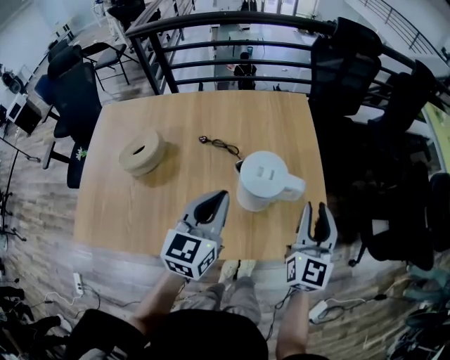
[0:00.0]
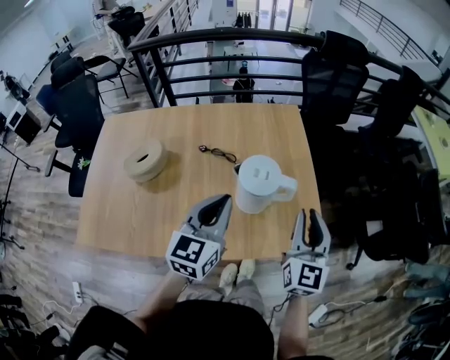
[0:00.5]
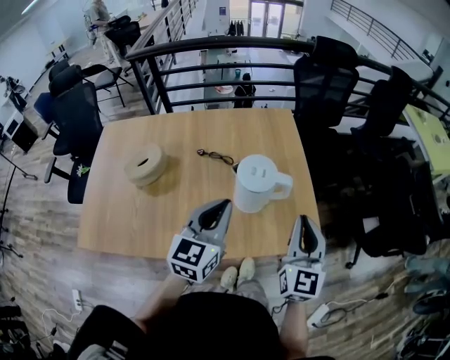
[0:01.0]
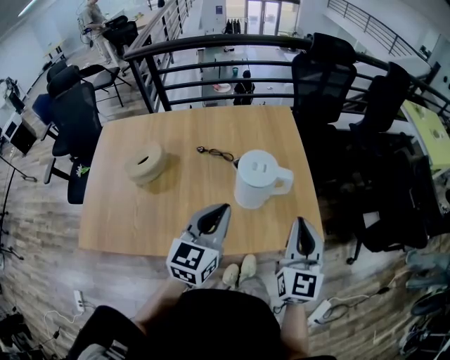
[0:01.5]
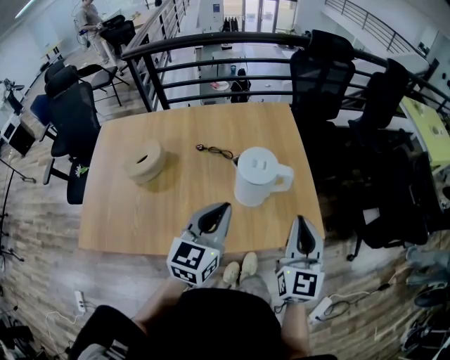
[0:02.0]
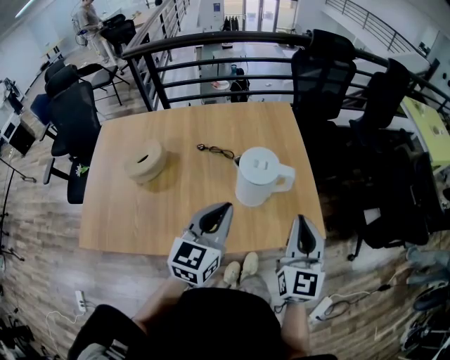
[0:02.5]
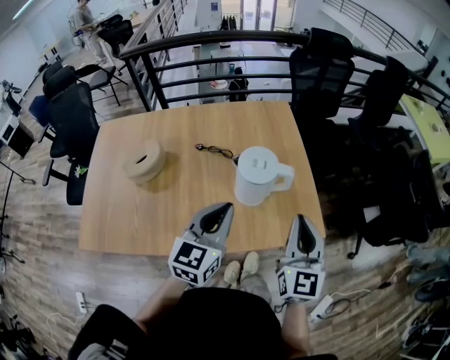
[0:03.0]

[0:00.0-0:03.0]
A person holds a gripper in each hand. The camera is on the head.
0:00.0 to 0:01.5: The left gripper heads backward, covering approximately 10 cm. The right gripper goes some 15 cm backward and upward, and closes up.
0:01.5 to 0:03.0: Both grippers stay about where they are.

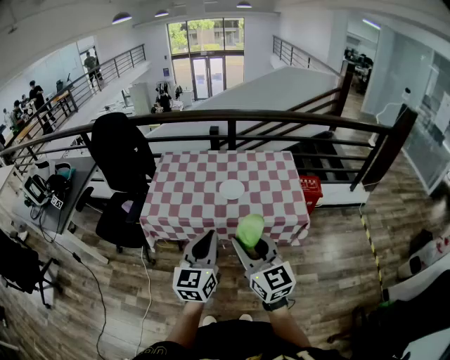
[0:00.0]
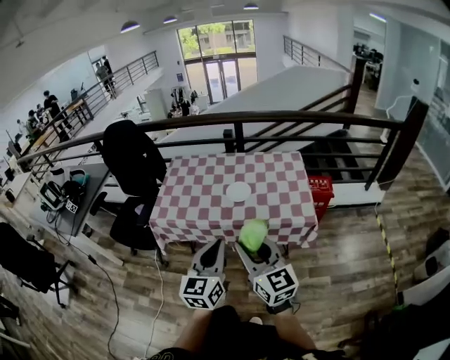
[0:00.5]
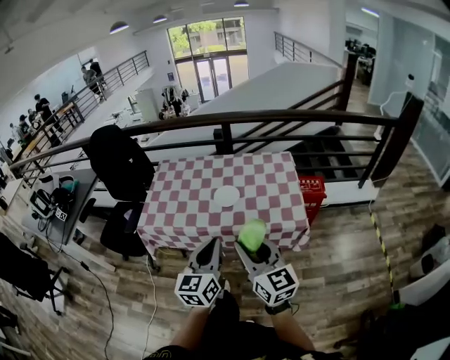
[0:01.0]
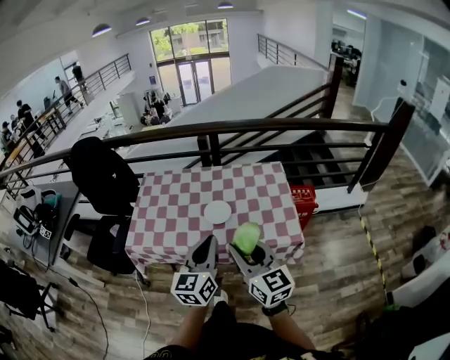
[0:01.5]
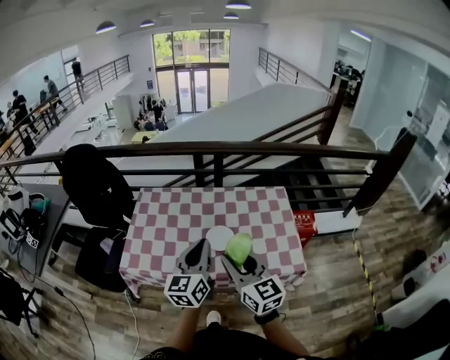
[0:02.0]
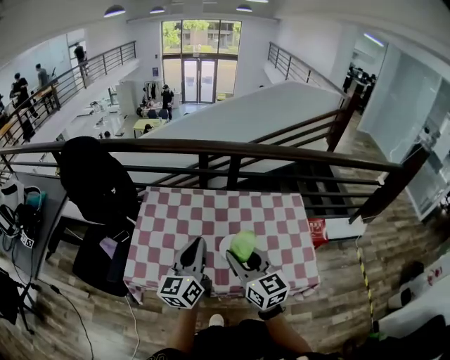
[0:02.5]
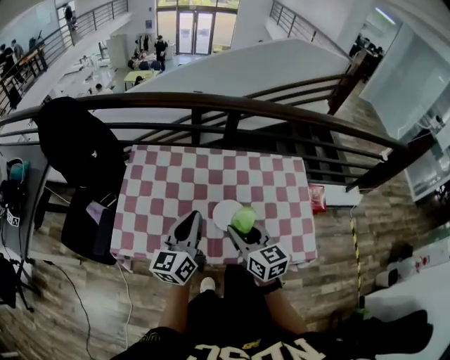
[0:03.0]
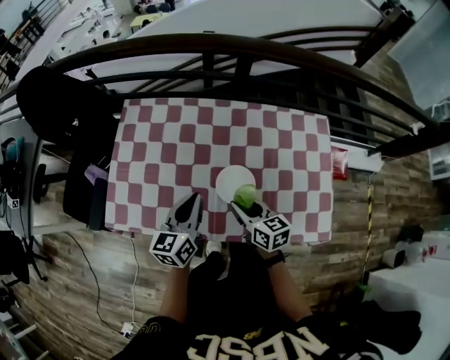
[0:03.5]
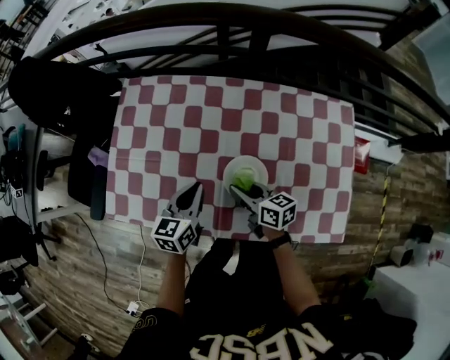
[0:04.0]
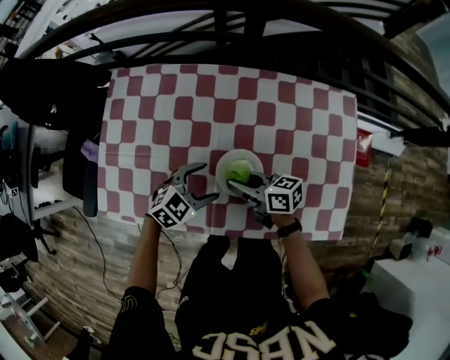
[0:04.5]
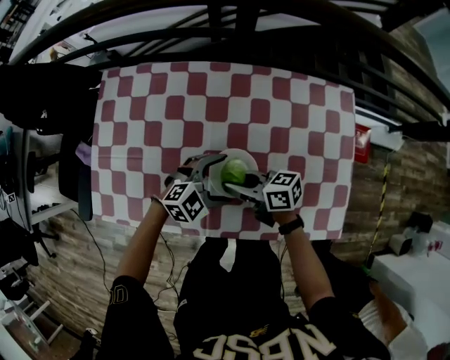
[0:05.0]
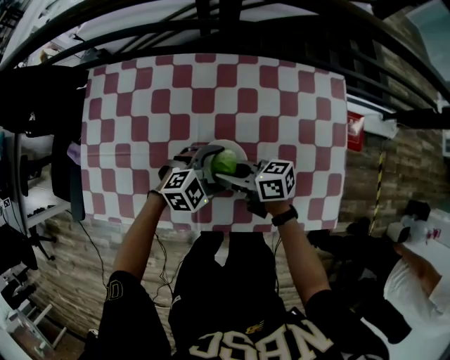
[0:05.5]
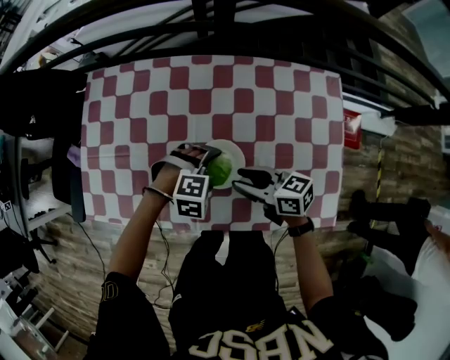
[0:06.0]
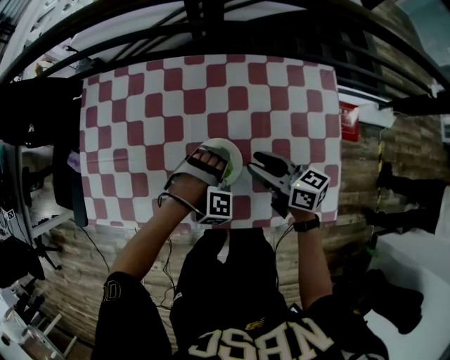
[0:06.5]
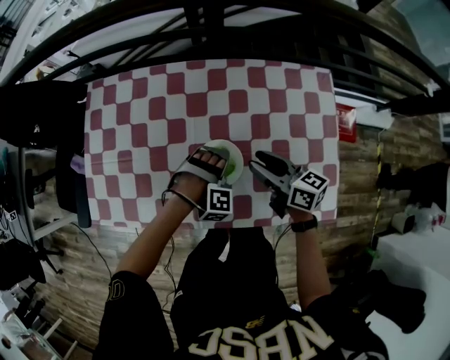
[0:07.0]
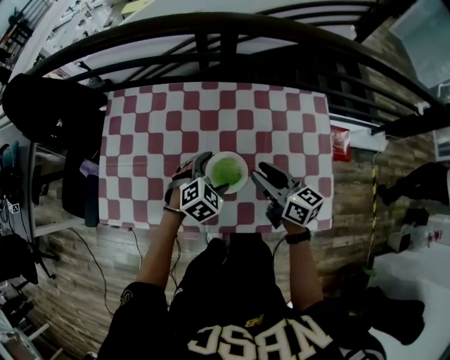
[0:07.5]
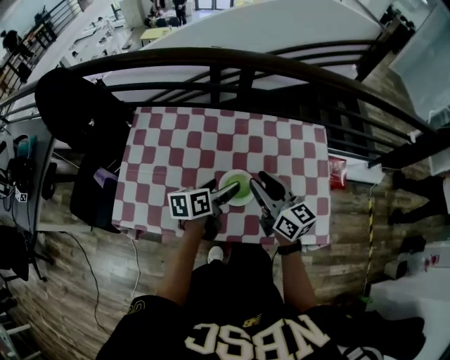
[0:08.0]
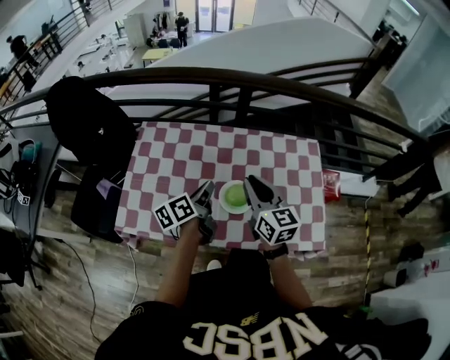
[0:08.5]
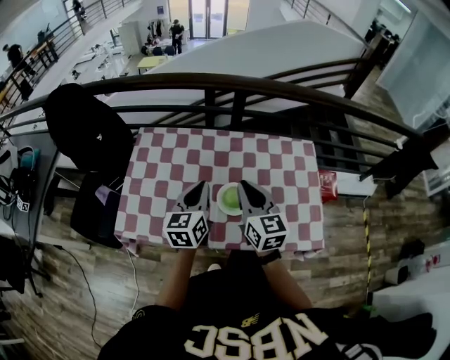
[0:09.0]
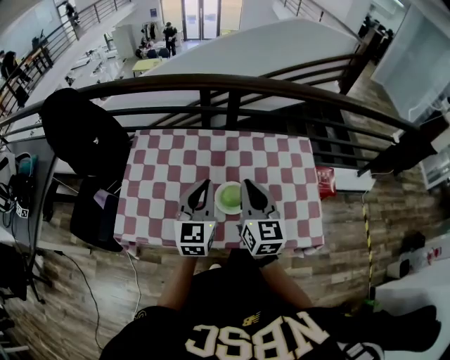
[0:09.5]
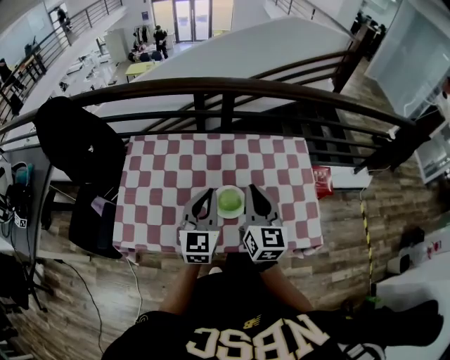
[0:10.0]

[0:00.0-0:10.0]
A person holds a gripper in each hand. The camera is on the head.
0:00.0 to 0:02.0: The two grippers go about 25 cm forward.
0:02.0 to 0:04.0: Both grippers travel together downward and forward, about 40 cm. The right gripper turns by some 50 degrees; the left gripper rotates roughly 30 degrees.
0:04.0 to 0:06.0: The left gripper moves about 15 cm, twists about 80 degrees clockwise, seen from behind, and opens up. The right gripper shifts by approximately 10 cm.
0:06.0 to 0:08.0: Both grippers travel together upward, roughly 20 cm. The left gripper twists roughly 100 degrees counterclockwise, seen from behind, while the right gripper turns by about 40 degrees.
0:08.0 to 0:10.0: The right gripper heads upward, covering about 5 cm, rotates roughly 30 degrees, and closes. The left gripper heads upward, covering about 10 cm, rolls clockwise, seen from behind, by roughly 50 degrees, and closes its fingers.

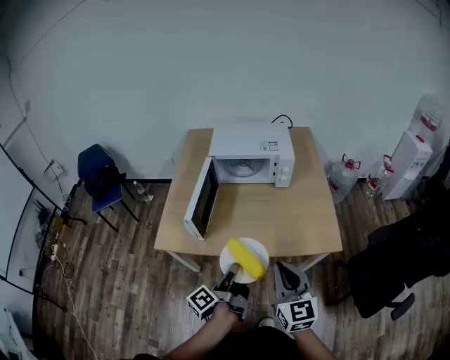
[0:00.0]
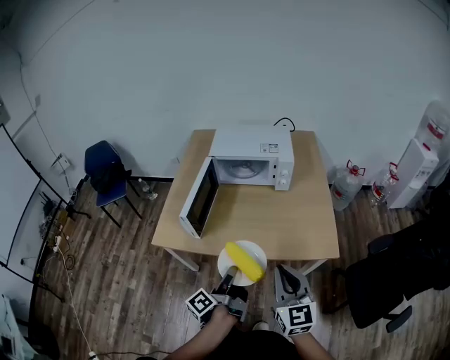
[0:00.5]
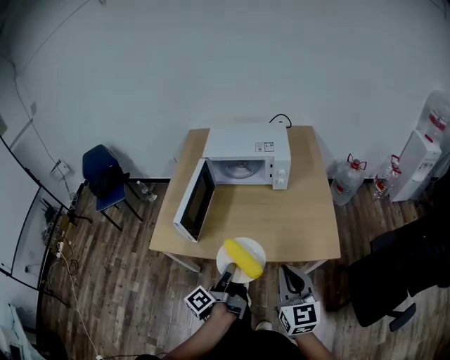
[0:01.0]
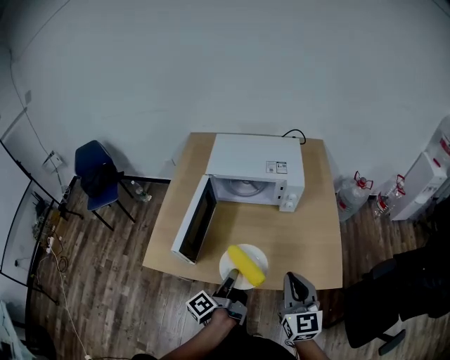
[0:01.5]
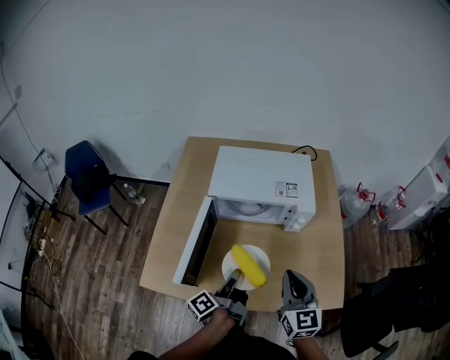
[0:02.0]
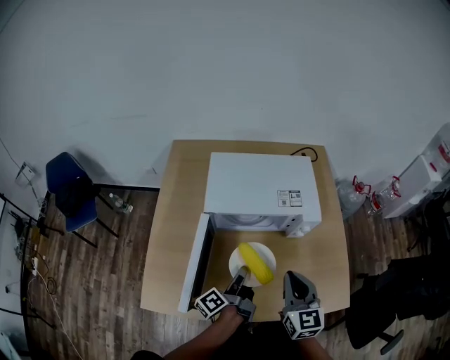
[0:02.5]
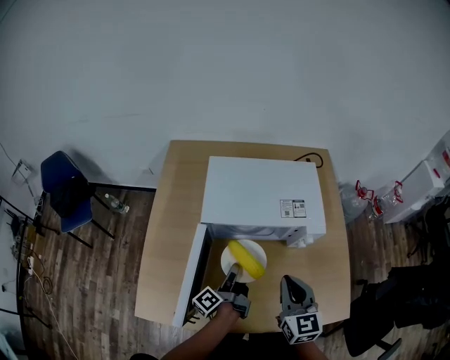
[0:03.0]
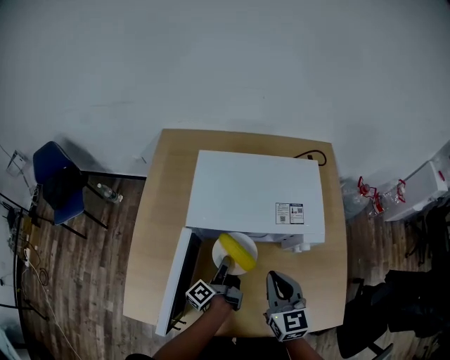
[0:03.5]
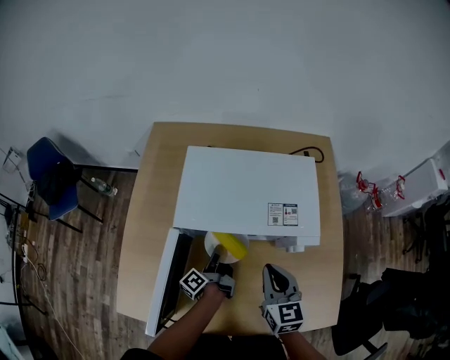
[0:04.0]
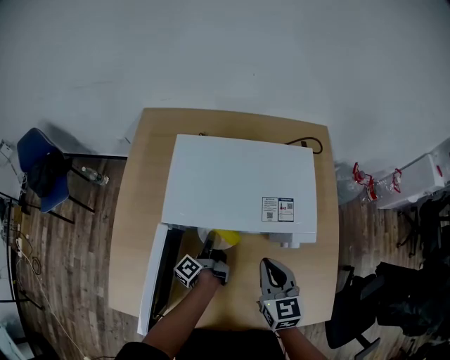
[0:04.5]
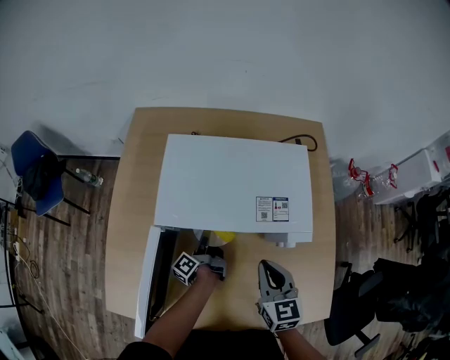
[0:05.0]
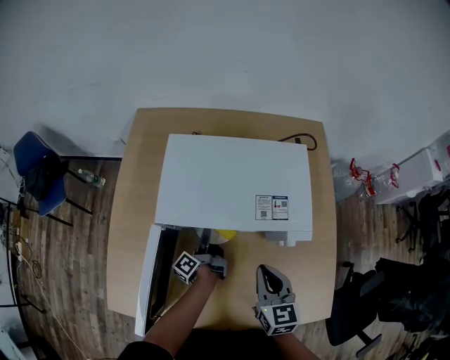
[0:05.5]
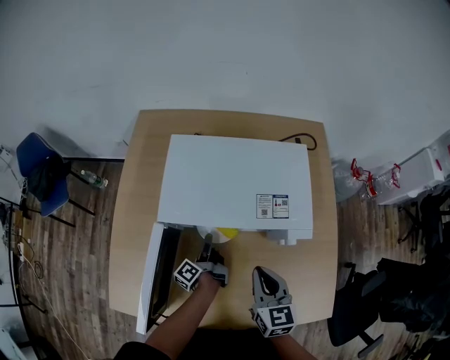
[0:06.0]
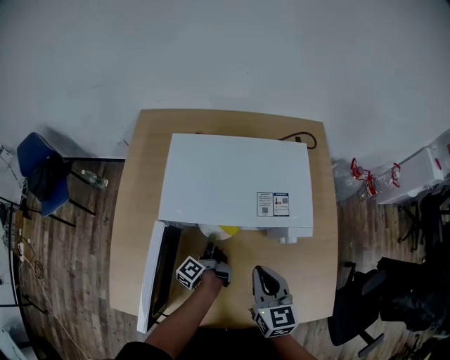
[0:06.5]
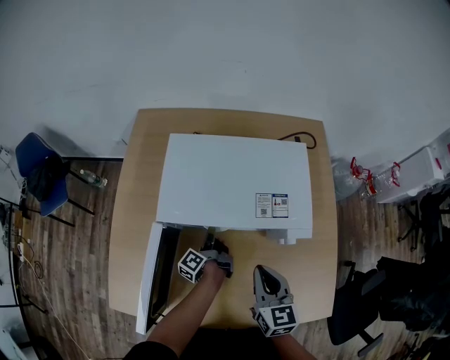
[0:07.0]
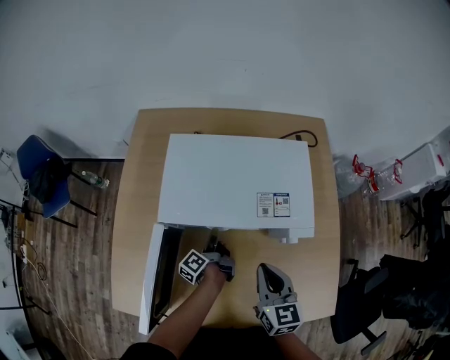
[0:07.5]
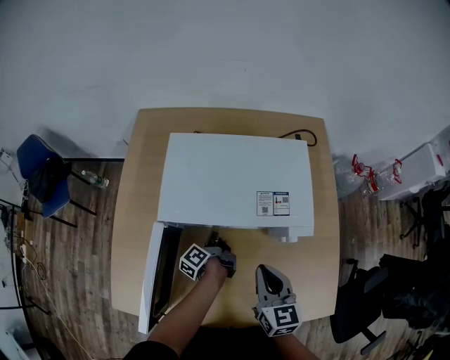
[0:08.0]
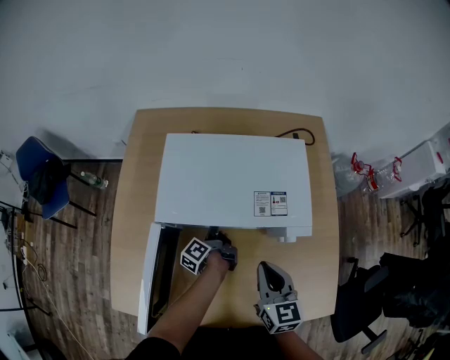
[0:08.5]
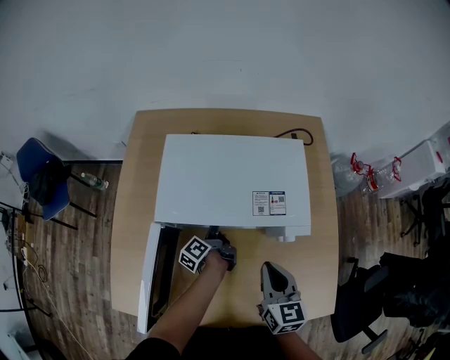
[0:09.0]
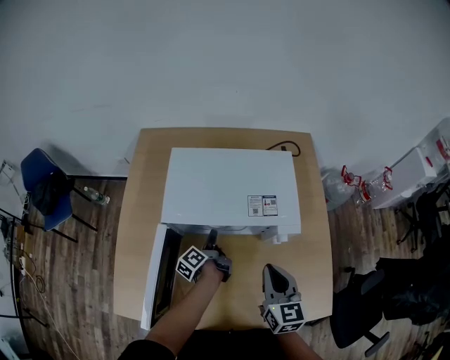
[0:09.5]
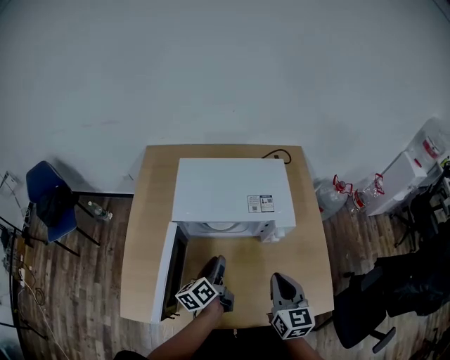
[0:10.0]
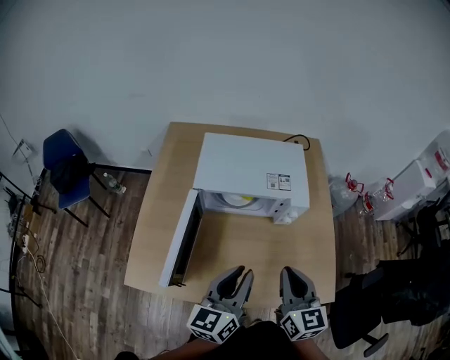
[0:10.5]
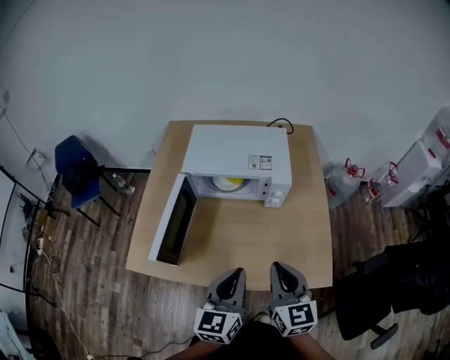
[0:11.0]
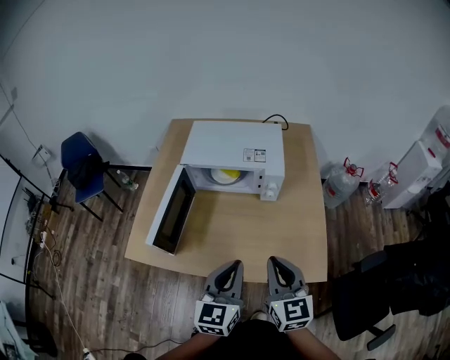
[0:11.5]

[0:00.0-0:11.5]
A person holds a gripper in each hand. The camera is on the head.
0:00.0 to 0:02.0: The right gripper changes place by about 25 cm.
0:02.0 to 0:04.0: The right gripper shifts by some 20 cm.
0:09.5 to 0:11.5: The right gripper ends up some 25 cm from where it was.

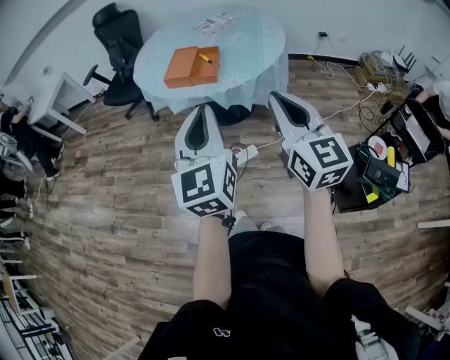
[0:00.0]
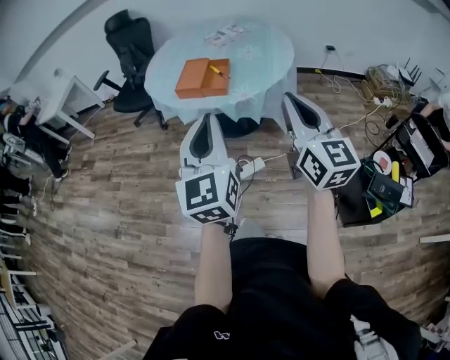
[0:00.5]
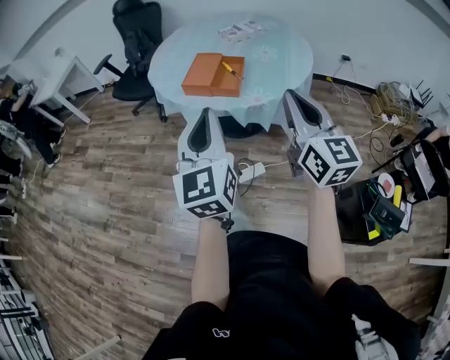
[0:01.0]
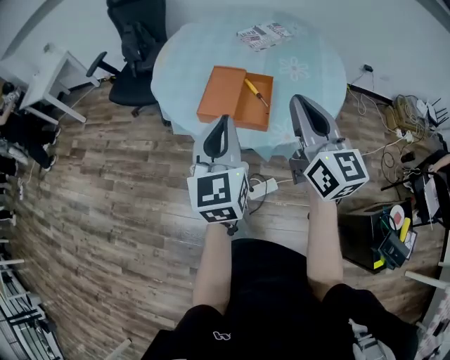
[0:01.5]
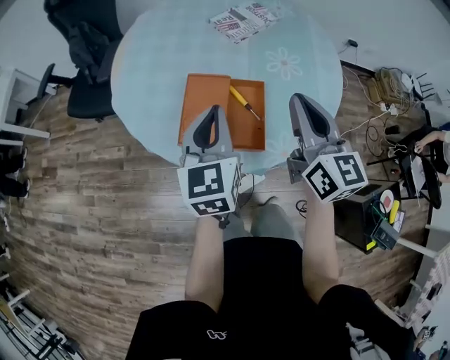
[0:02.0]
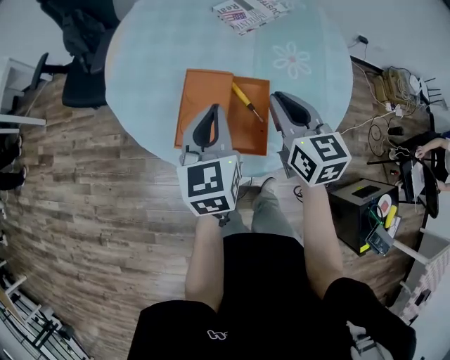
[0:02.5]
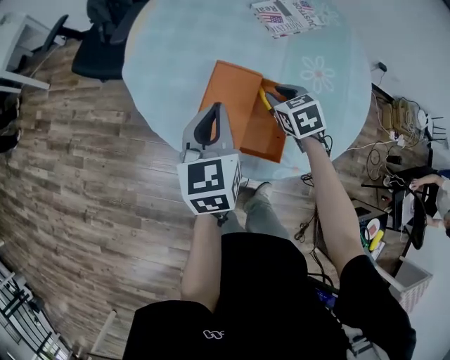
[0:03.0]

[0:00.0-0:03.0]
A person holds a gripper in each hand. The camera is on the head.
0:00.0 to 0:01.5: Both grippers move forward, about 35 cm.
0:01.5 to 0:03.0: The left gripper travels forward and downward by about 30 cm. Meanwhile the right gripper moves forward and downward, some 40 cm, tilts its fingers some 60 degrees downward, and opens up.
